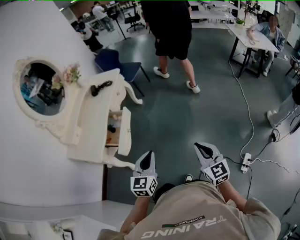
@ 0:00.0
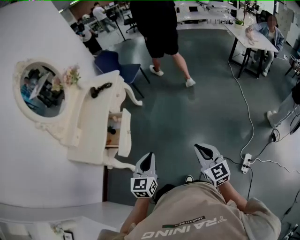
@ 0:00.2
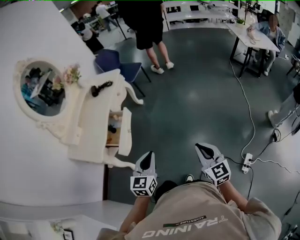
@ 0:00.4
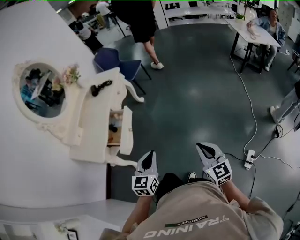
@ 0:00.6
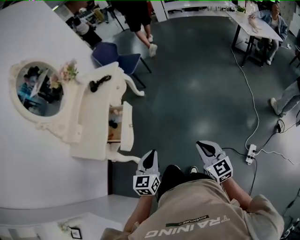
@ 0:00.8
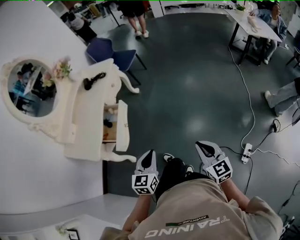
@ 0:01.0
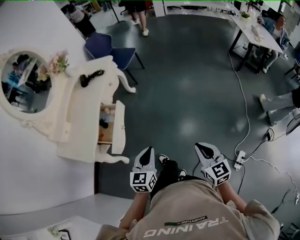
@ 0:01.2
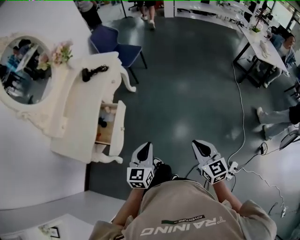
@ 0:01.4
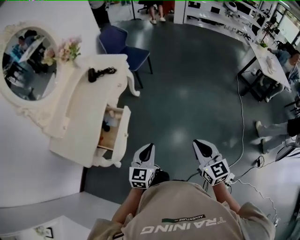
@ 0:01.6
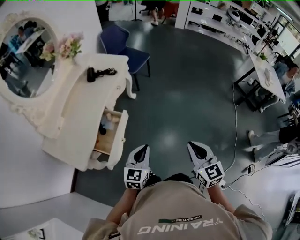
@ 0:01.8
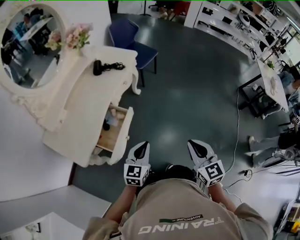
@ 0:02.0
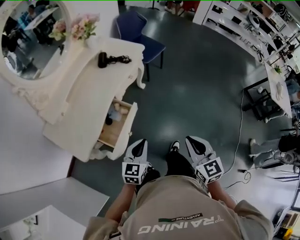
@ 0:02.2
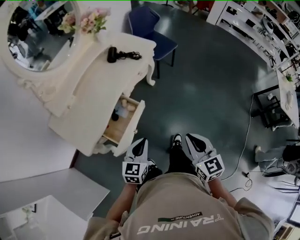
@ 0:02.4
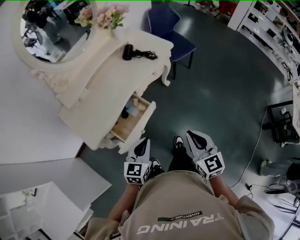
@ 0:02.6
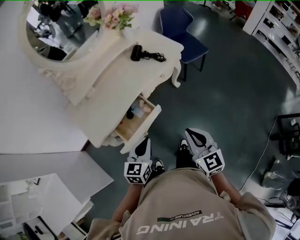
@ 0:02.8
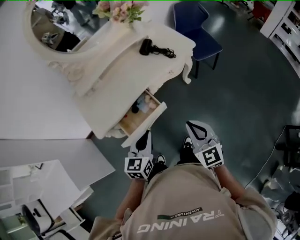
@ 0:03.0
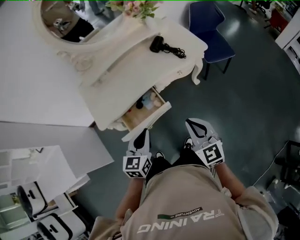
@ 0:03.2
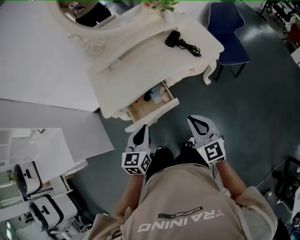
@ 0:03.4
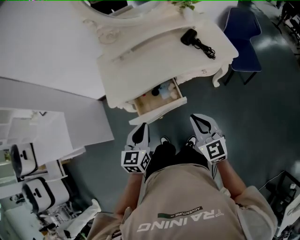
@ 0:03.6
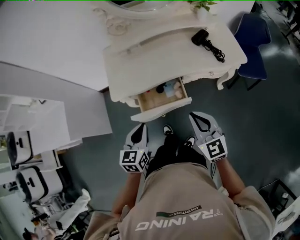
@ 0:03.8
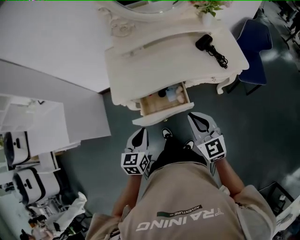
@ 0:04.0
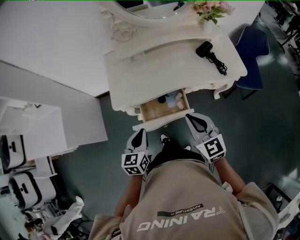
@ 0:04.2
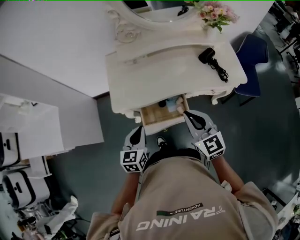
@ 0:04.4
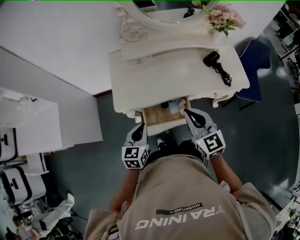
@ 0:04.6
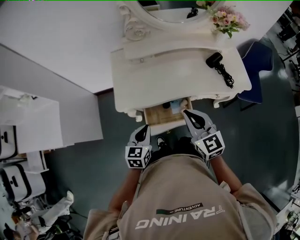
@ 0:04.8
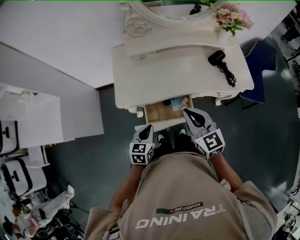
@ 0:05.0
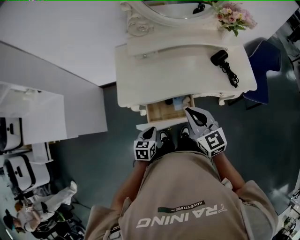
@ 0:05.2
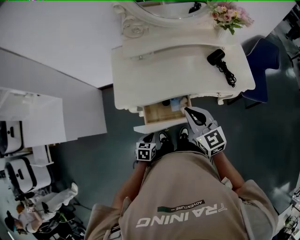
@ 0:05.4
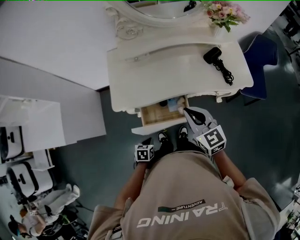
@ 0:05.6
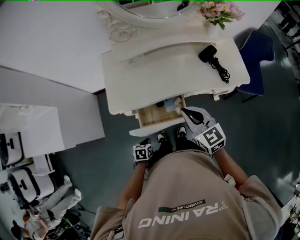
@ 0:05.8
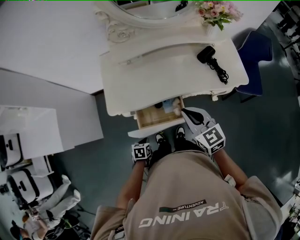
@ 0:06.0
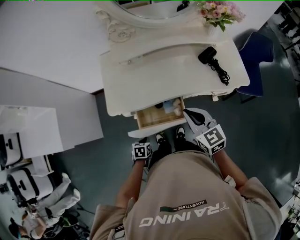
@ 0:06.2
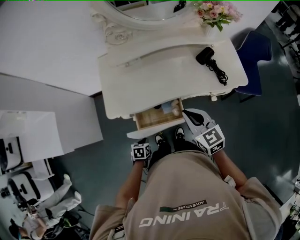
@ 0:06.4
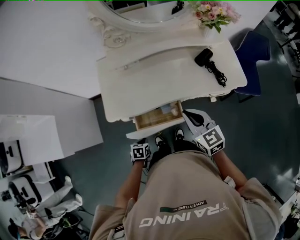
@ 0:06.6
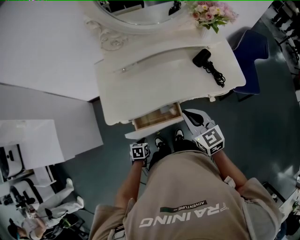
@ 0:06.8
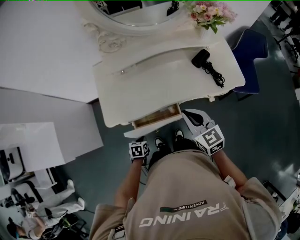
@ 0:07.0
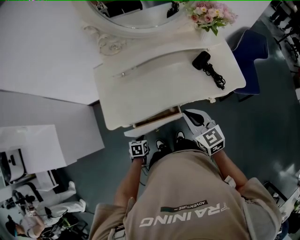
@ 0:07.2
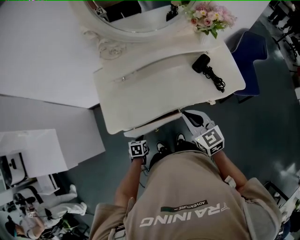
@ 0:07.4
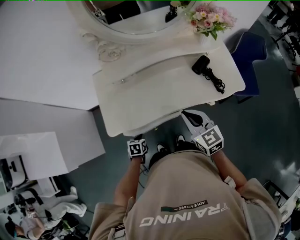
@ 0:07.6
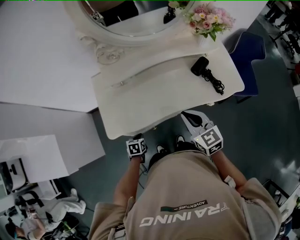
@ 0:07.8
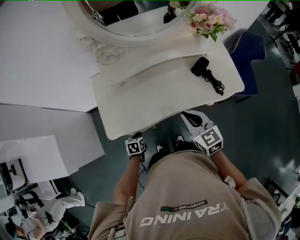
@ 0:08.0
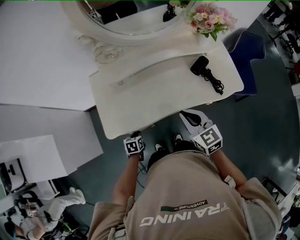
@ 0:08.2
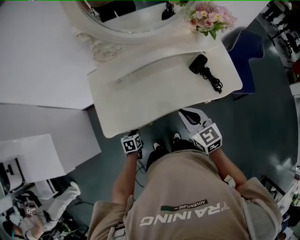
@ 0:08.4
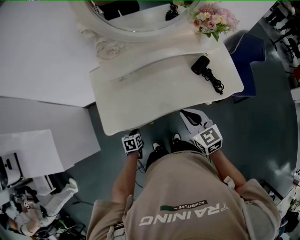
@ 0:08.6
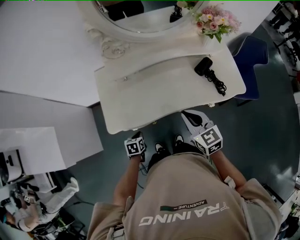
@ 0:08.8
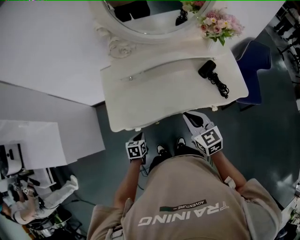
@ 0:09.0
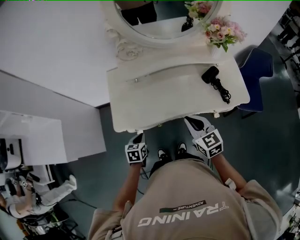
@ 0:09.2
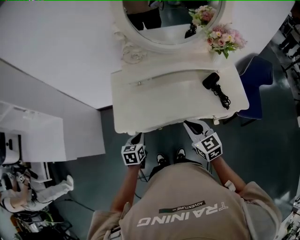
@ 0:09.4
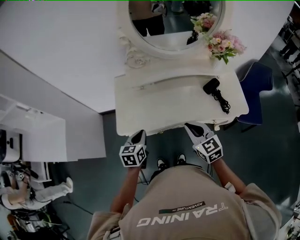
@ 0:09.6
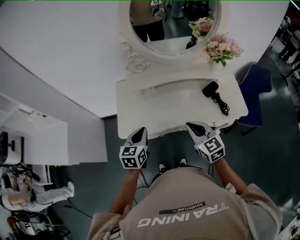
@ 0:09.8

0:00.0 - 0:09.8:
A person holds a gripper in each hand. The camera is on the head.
0:00.0 - 0:01.4: The two grippers go some 10 cm forward.
0:01.4 - 0:02.8: The right gripper changes place by about 35 cm, and turns by about 40 degrees, while the left gripper shifts by roughly 20 cm, and turns by some 30 degrees.
0:02.8 - 0:04.2: The left gripper changes place by about 10 cm, and rotates some 40 degrees. The right gripper moves roughly 15 cm, and changes its angle by approximately 40 degrees.
0:04.2 - 0:05.6: The left gripper is displaced downward by about 20 cm, and points its fingers about 30 degrees further downward; the right gripper travels forward by roughly 10 cm.
0:05.6 - 0:07.0: The right gripper ends up roughly 5 cm from where it was; the left gripper heads forward, covering roughly 10 cm.
0:07.0 - 0:08.4: The left gripper travels forward by some 10 cm. The right gripper travels forward by approximately 5 cm.
0:08.4 - 0:09.8: The right gripper shifts by roughly 5 cm. The left gripper is displaced upward by some 30 cm, and angles its fingers upward, by approximately 30 degrees.

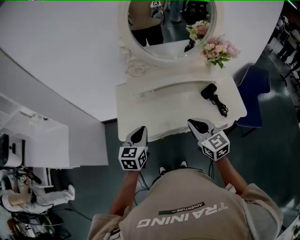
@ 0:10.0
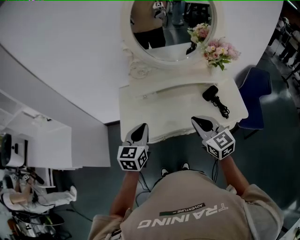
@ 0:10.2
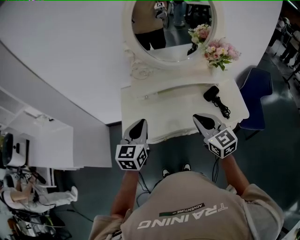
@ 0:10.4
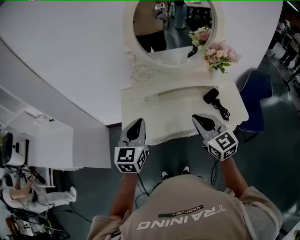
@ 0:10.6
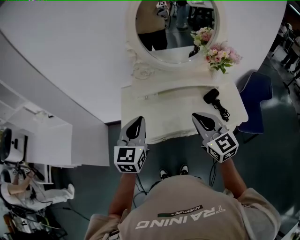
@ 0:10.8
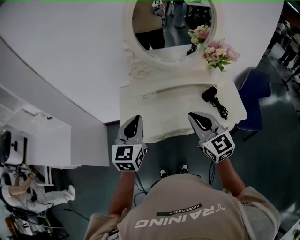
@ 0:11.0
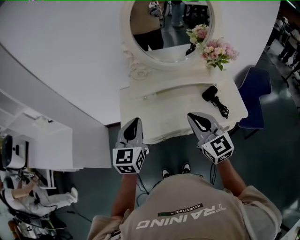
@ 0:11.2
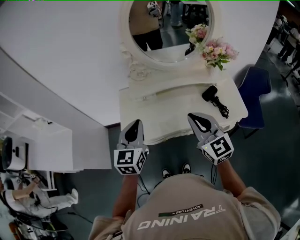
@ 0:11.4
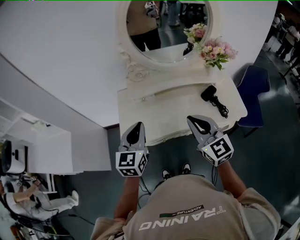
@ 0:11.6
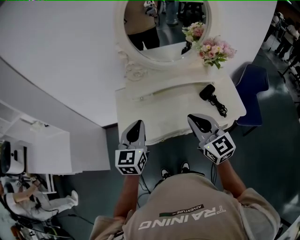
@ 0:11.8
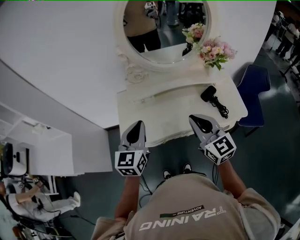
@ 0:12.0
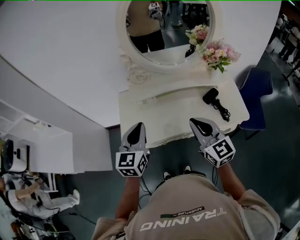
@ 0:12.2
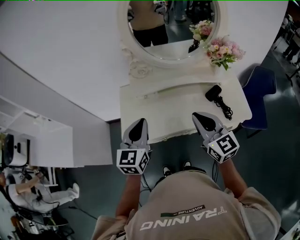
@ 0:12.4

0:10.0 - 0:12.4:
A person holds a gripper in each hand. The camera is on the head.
0:10.0 - 0:11.2: Both grippers travel together upward, some 10 cm.
0:11.2 - 0:12.4: The right gripper ends up approximately 5 cm from where it was.

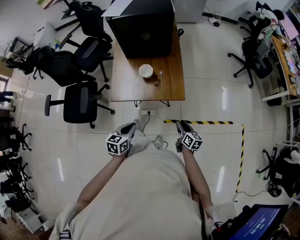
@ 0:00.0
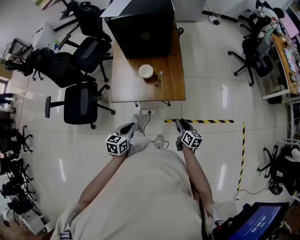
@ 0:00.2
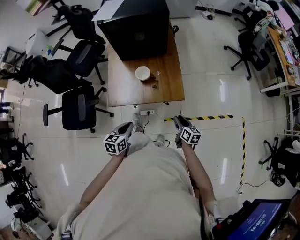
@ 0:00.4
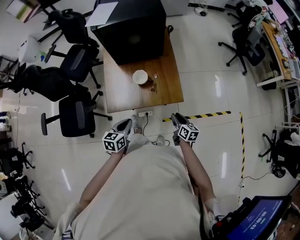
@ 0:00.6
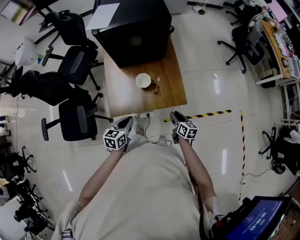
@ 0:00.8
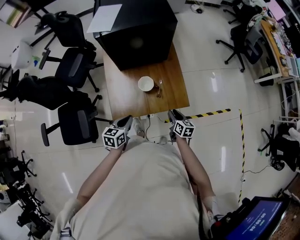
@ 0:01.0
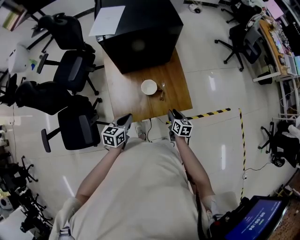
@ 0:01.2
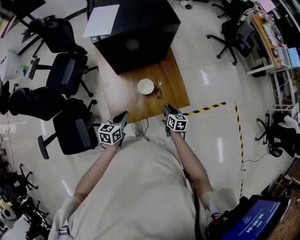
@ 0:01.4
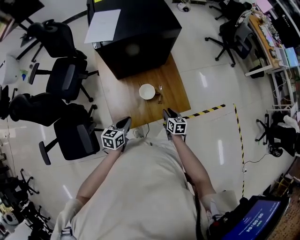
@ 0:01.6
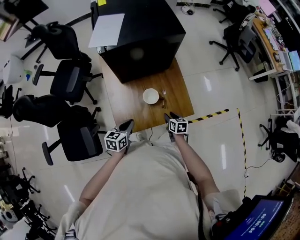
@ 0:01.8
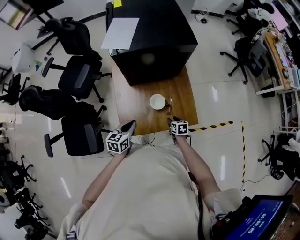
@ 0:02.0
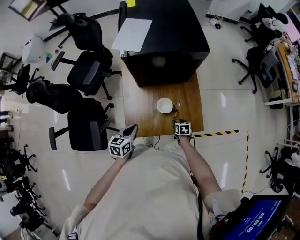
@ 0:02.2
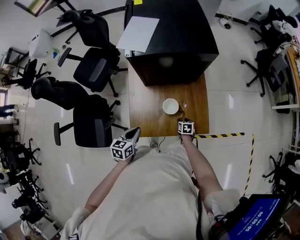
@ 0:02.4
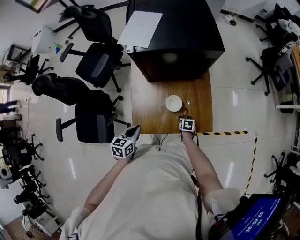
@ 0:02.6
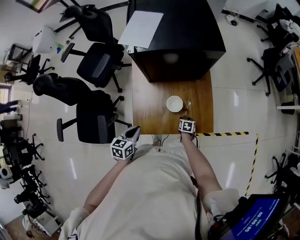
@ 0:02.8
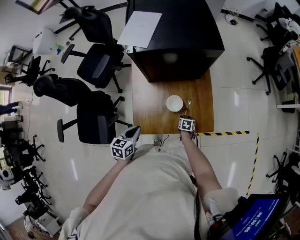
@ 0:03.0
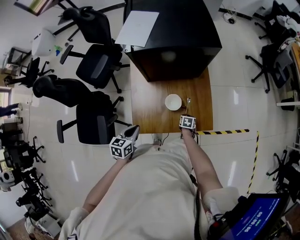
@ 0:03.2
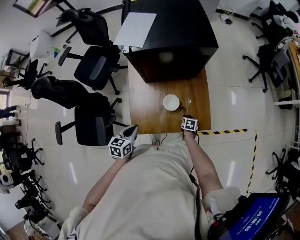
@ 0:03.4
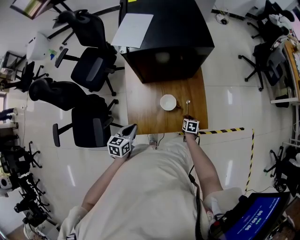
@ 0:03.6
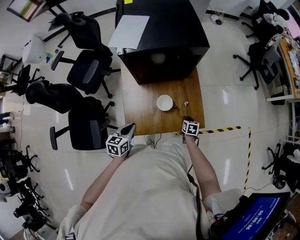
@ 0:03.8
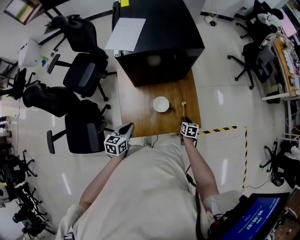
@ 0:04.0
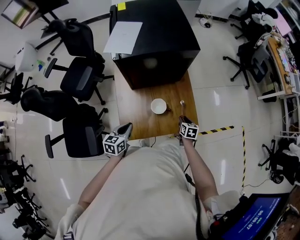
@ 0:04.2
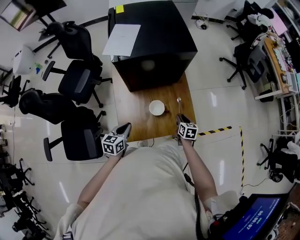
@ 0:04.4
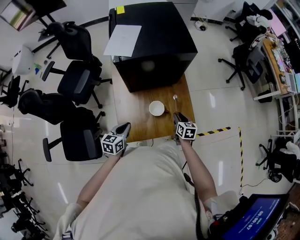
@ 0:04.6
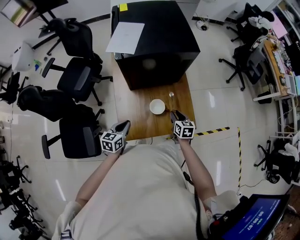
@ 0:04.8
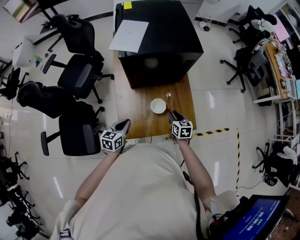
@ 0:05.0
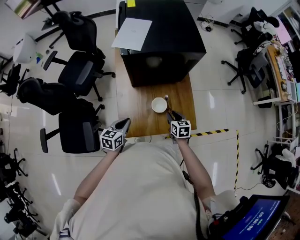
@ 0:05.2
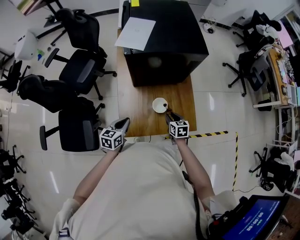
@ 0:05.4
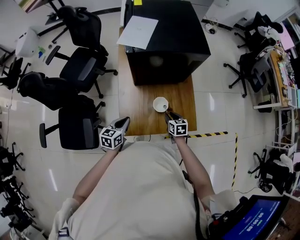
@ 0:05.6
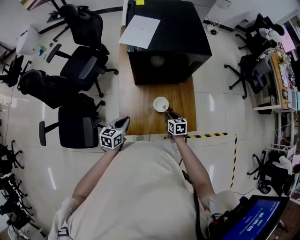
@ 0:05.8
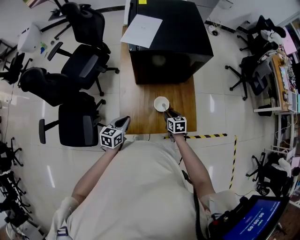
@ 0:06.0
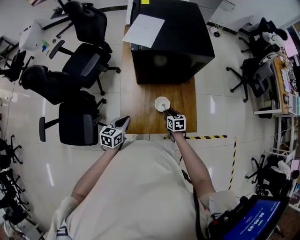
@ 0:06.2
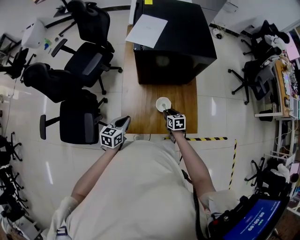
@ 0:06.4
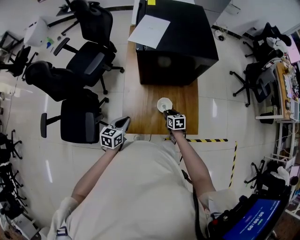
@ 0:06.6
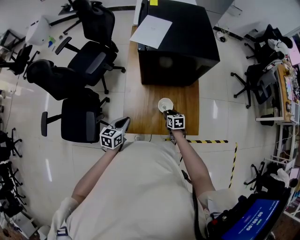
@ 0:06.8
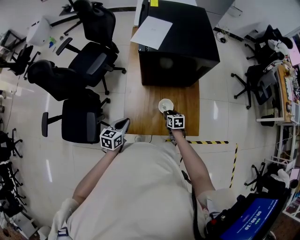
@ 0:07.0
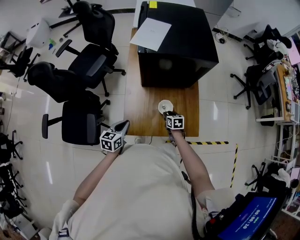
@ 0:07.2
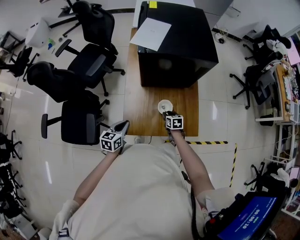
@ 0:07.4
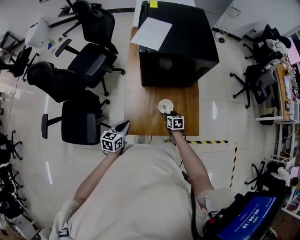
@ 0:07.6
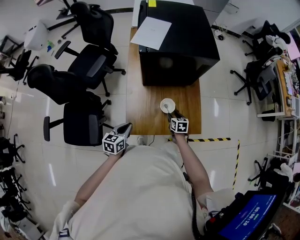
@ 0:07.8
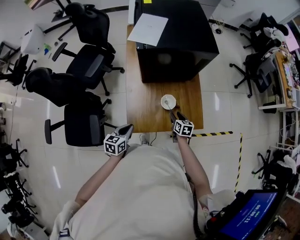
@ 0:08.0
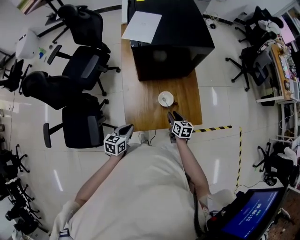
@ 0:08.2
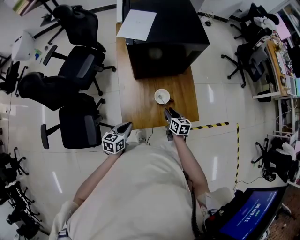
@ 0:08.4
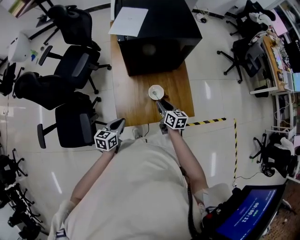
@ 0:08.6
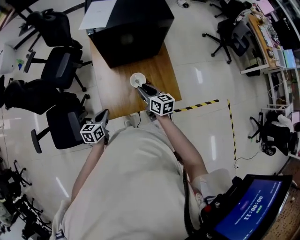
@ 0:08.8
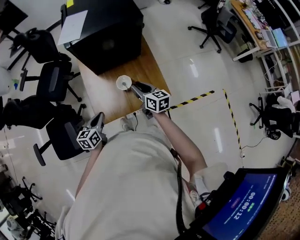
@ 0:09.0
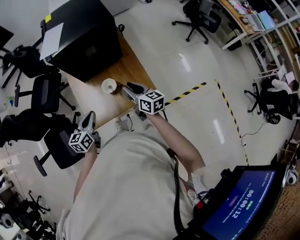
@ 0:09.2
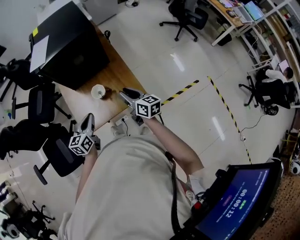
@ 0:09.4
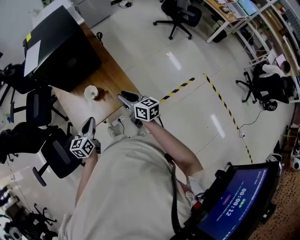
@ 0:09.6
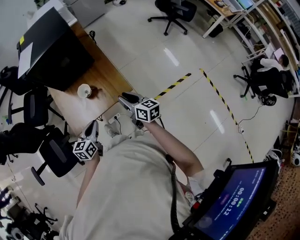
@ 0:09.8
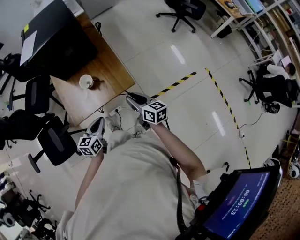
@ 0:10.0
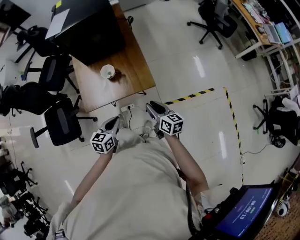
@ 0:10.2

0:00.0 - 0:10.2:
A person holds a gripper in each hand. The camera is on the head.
0:00.0 - 0:01.4: Both grippers travel together forward and to the left, approximately 25 cm.
0:01.4 - 0:03.0: The right gripper moves downward and forward, approximately 15 cm, and turns by approximately 30 degrees.
0:03.0 - 0:04.4: The left gripper travels forward by about 5 cm. The right gripper shifts about 15 cm upward, and changes its angle by approximately 20 degrees.
0:04.4 - 0:05.8: The right gripper travels to the left by approximately 10 cm.
0:05.8 - 0:07.2: The right gripper is displaced downward by about 5 cm.
0:07.2 - 0:08.8: The right gripper is displaced upward by some 20 cm, and turns by some 30 degrees.
0:08.8 - 0:10.2: The two grippers go roughly 35 cm to the right and backward.

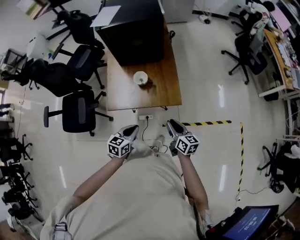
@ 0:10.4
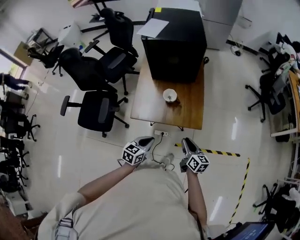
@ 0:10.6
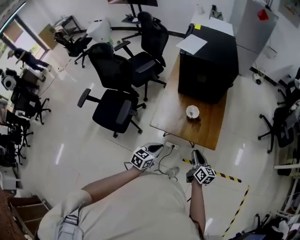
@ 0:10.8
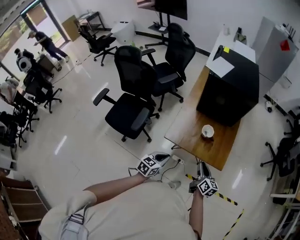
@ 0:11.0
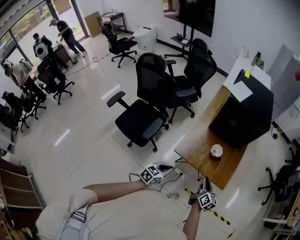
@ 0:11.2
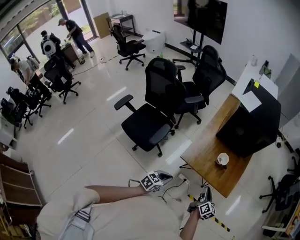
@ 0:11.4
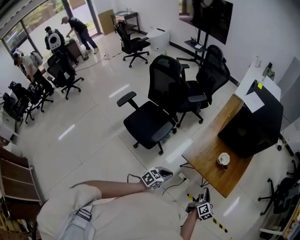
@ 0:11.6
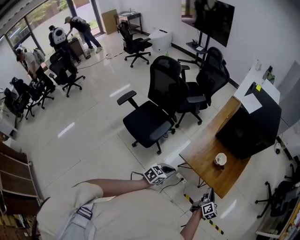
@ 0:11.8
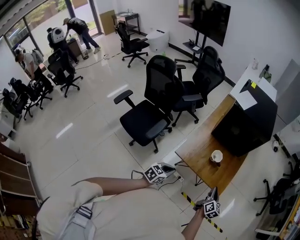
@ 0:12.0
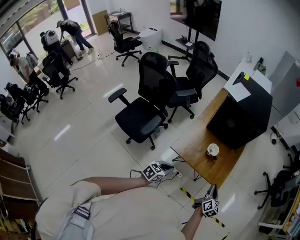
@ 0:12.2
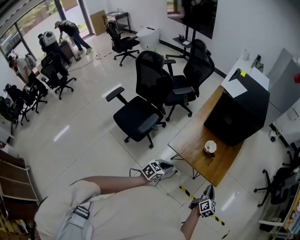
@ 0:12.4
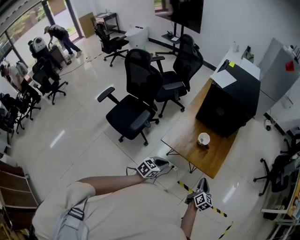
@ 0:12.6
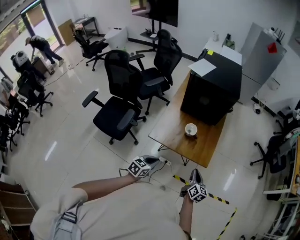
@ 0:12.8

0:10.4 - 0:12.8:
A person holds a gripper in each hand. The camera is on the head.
0:10.4 - 0:11.6: The two grippers go roughly 20 cm to the left.
0:11.6 - 0:12.8: Both grippers move to the right, about 15 cm.
